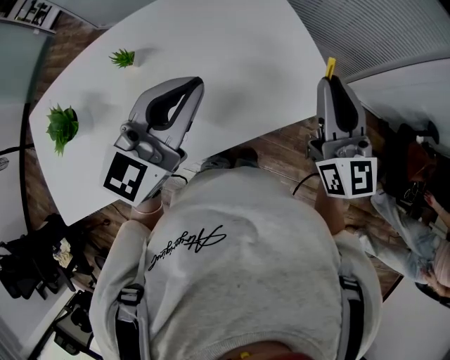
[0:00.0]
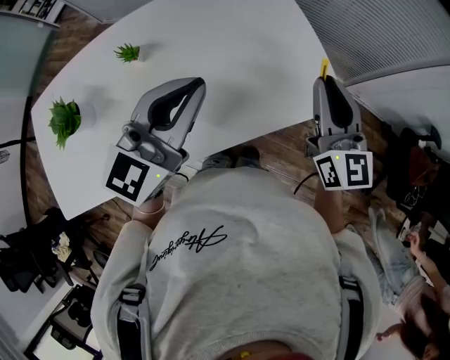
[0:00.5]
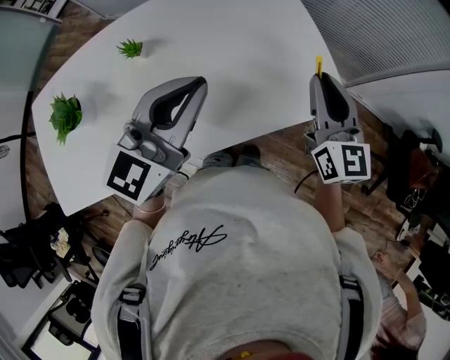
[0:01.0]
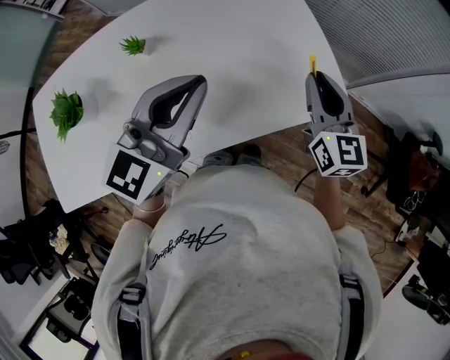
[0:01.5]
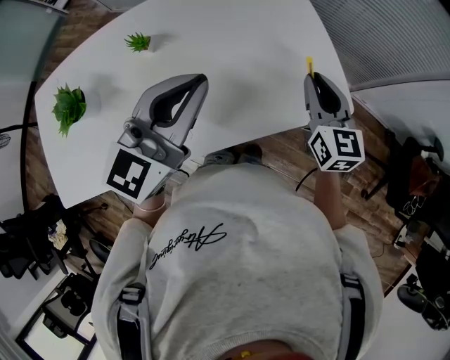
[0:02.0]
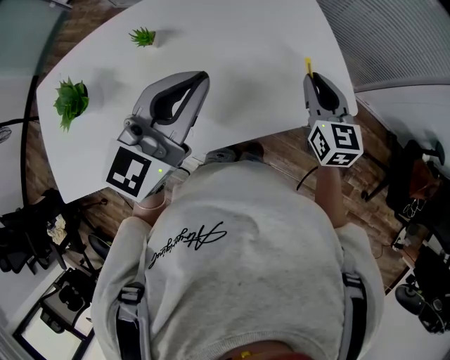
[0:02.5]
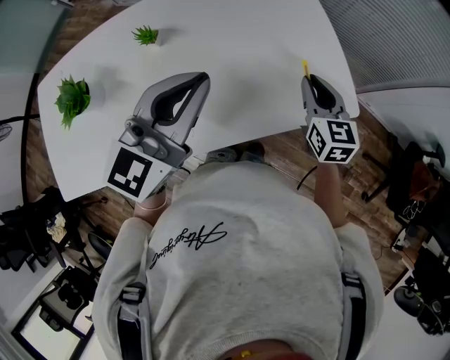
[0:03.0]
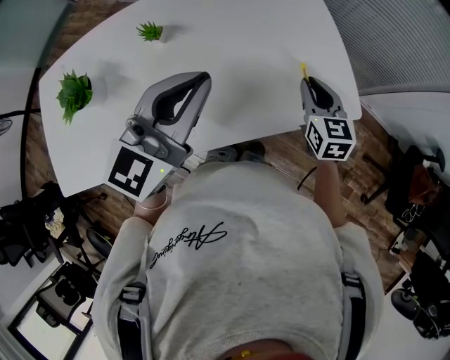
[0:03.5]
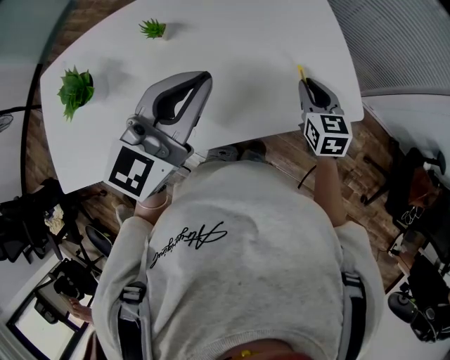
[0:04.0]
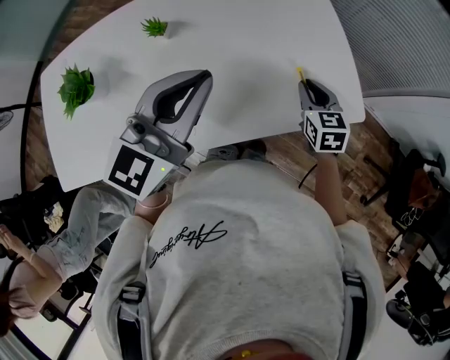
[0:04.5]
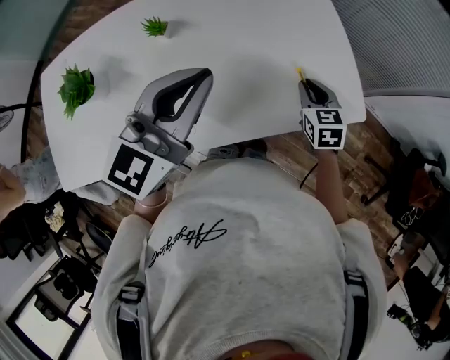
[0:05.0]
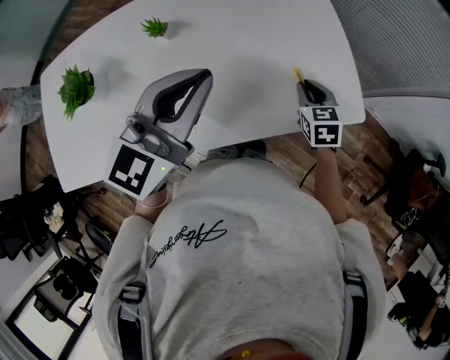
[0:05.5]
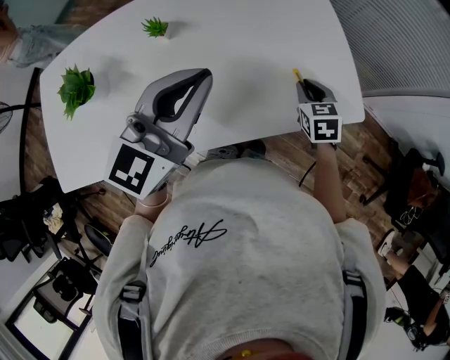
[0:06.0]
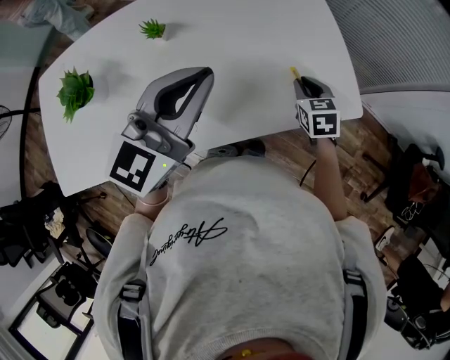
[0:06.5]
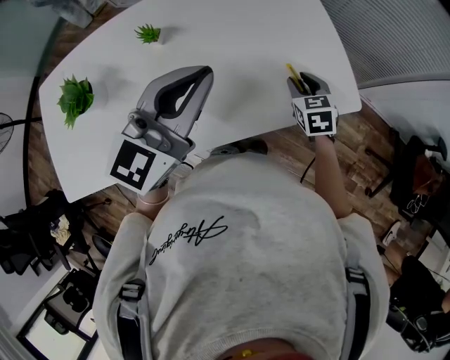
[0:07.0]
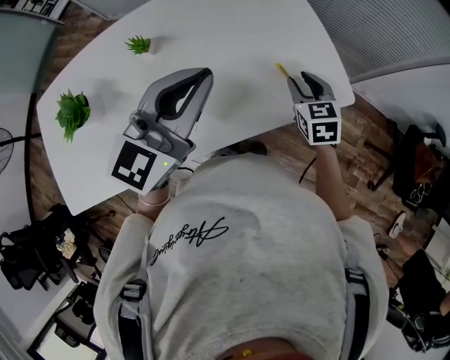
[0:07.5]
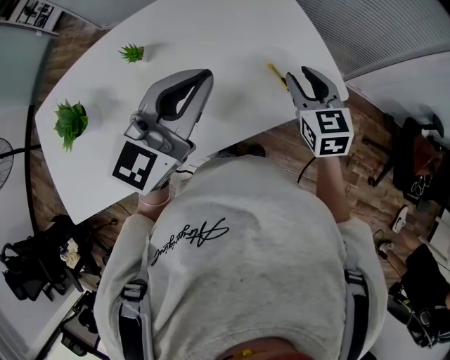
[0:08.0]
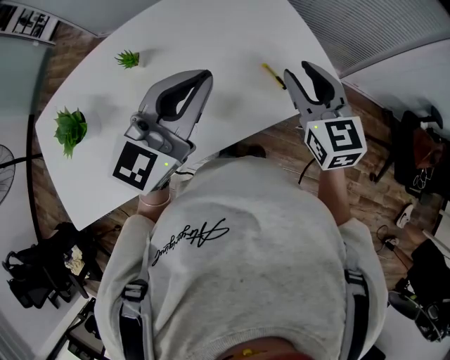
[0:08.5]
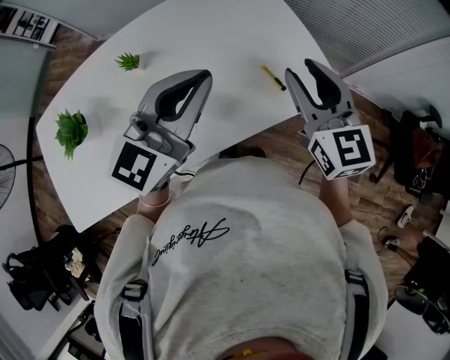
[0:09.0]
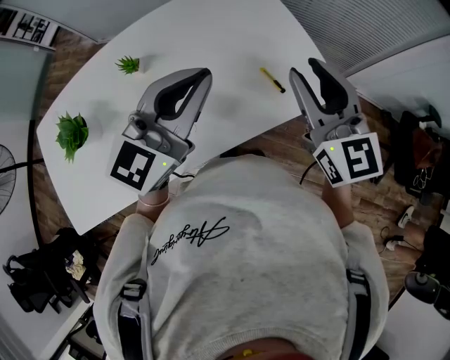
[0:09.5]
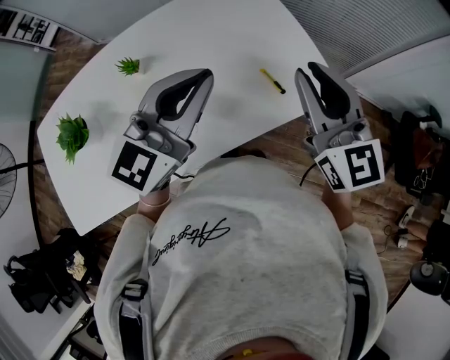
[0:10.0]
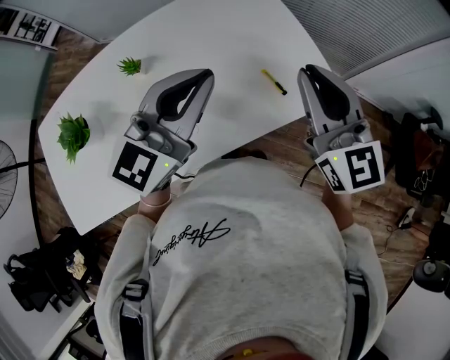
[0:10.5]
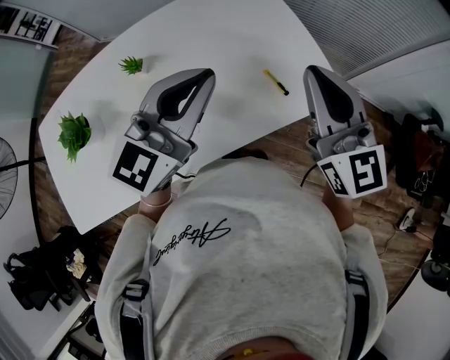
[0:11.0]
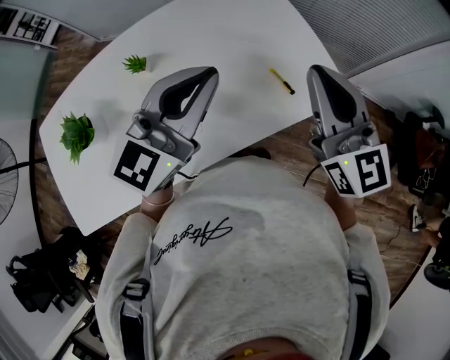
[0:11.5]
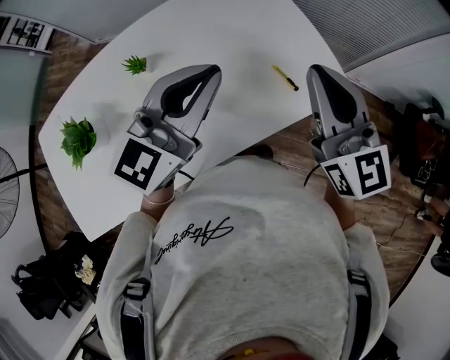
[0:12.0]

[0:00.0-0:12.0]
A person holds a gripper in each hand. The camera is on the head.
0:00.0 to 0:02.0: The right gripper goes roughly 10 cm downward.
0:02.0 to 0:04.0: The right gripper is displaced downward by roughly 10 cm.
0:04.0 to 0:06.0: There are only small adjustments of the grippers.
0:06.0 to 0:08.0: The right gripper goes roughly 10 cm upward, and opens up.
0:08.0 to 0:10.0: The right gripper travels upward by about 15 cm, and turns by roughly 30 degrees.
0:10.0 to 0:12.0: The grippers stay close to where they were, moving slightly.

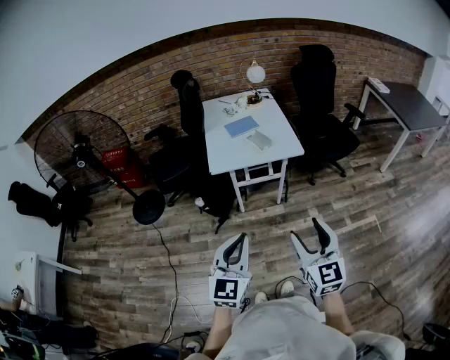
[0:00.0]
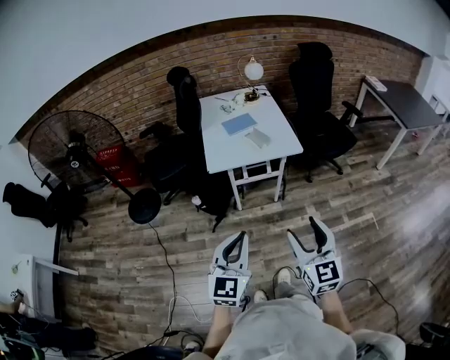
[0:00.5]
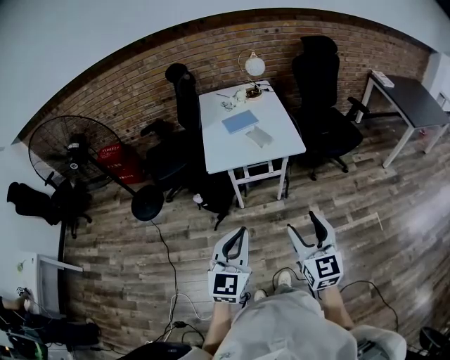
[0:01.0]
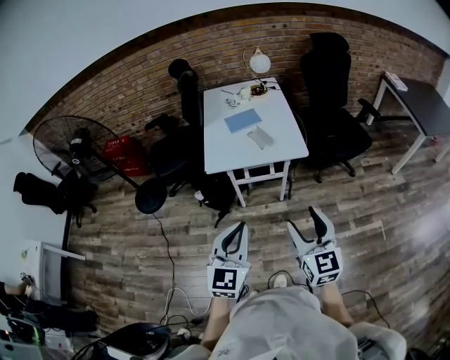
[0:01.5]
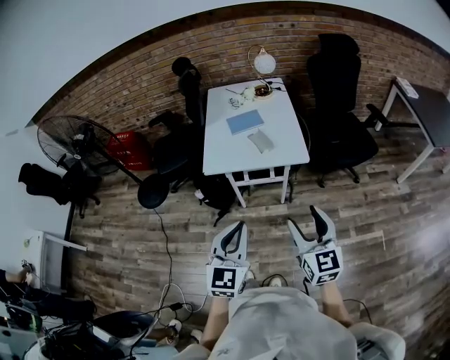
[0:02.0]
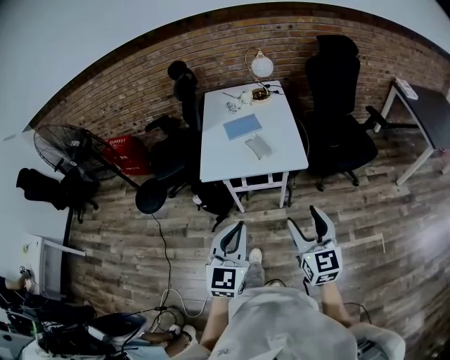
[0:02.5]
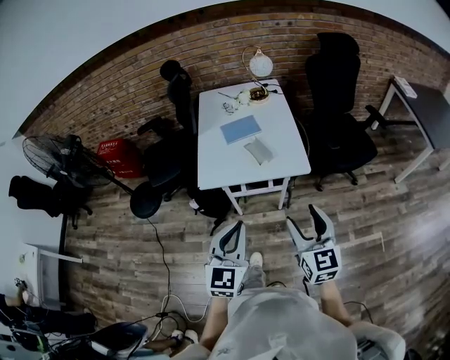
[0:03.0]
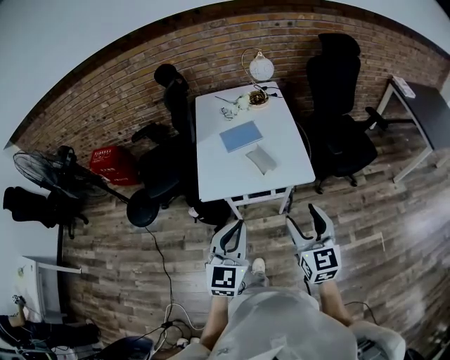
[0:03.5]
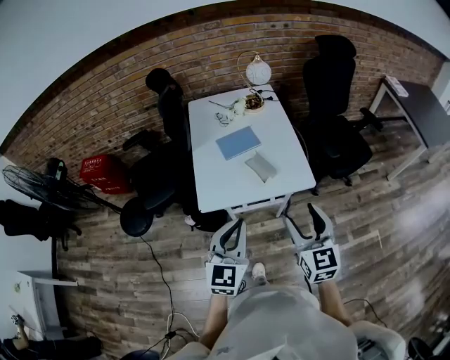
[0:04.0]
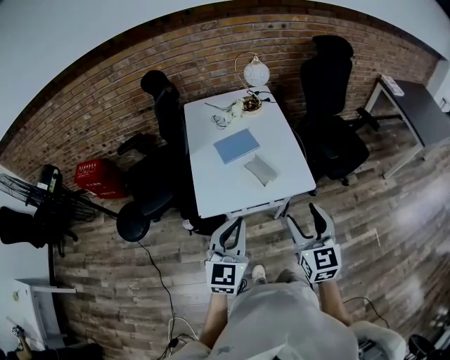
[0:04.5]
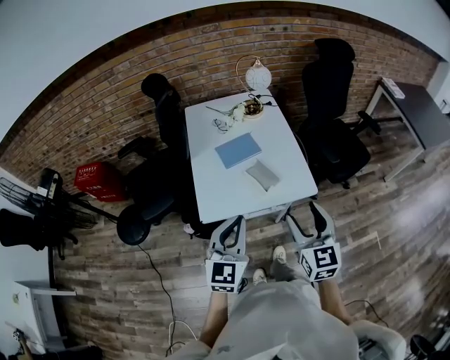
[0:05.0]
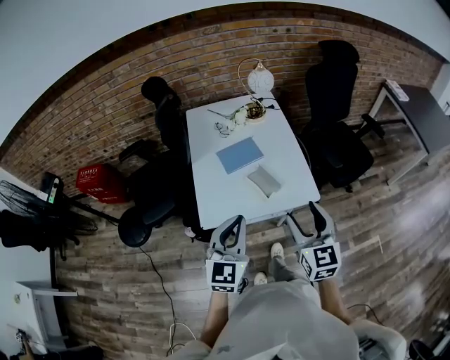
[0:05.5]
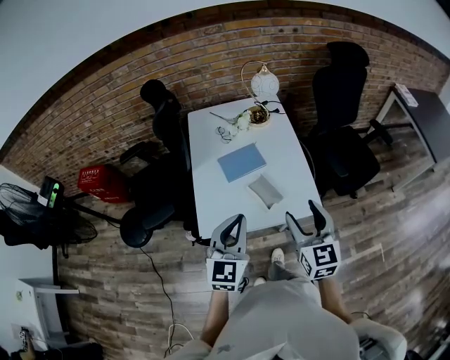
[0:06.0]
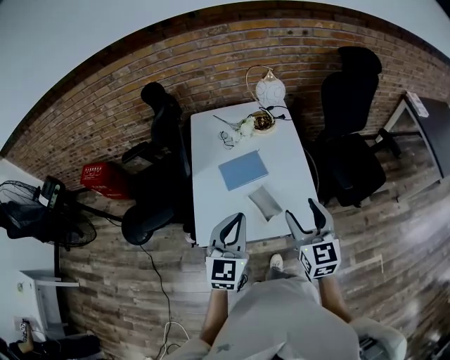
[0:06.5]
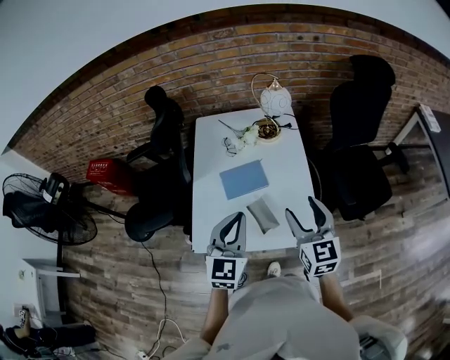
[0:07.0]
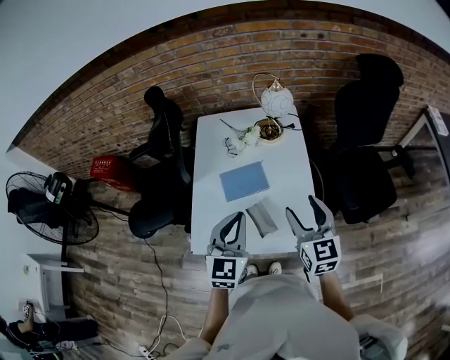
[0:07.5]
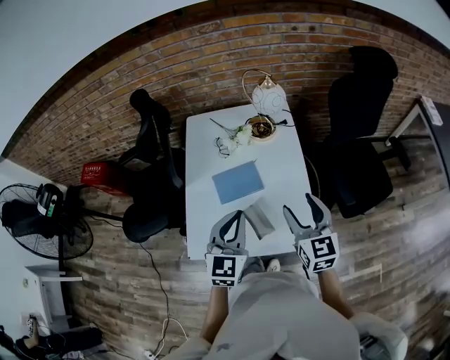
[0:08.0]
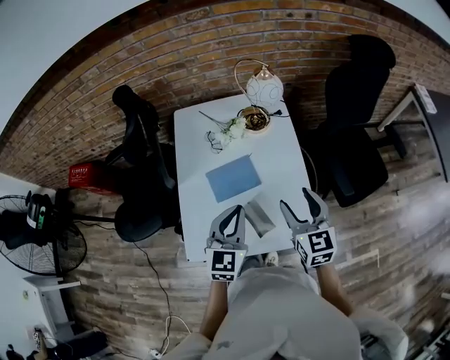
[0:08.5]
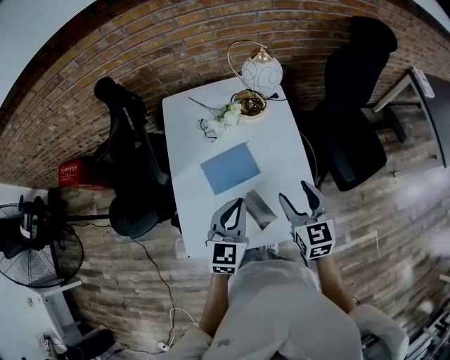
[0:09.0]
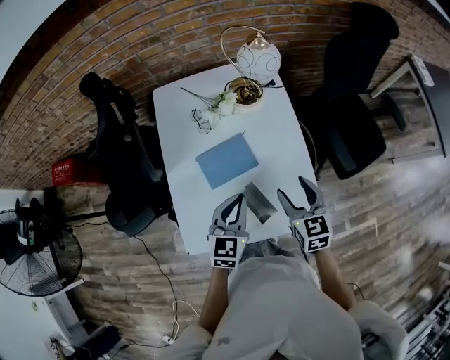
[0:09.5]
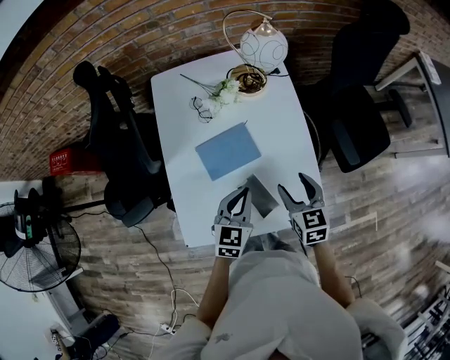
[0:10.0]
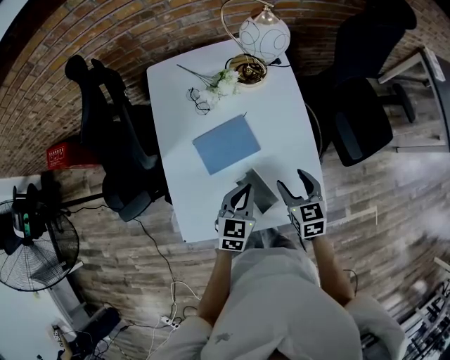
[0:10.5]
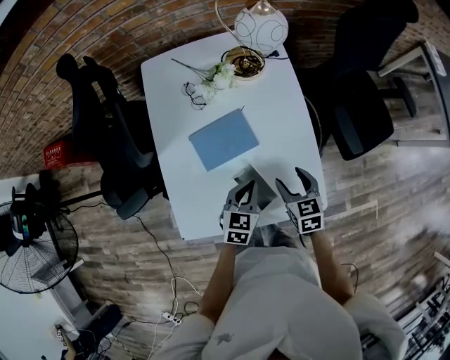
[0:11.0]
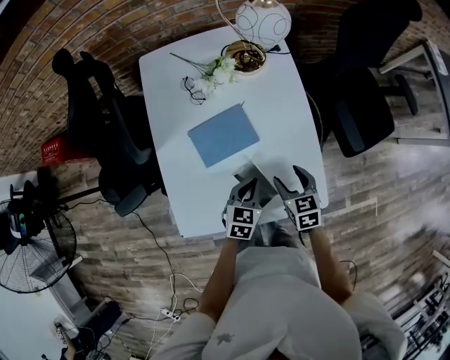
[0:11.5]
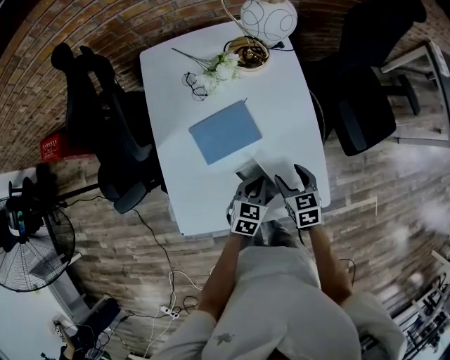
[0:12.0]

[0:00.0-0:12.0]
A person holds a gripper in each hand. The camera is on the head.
0:00.0 to 0:02.0: The two grippers go roughly 20 cm forward and to the right.
0:02.0 to 0:04.0: Both grippers travel together forward, some 20 cm.
0:04.0 to 0:06.0: Both grippers move forward, approximately 15 cm.
0:06.0 to 0:08.0: The right gripper is displaced forward by approximately 20 cm, while the left gripper is displaced forward and to the right by approximately 20 cm.
0:08.0 to 0:10.0: The grippers both shift downward by some 15 cm. The right gripper changes its angle by roughly 20 degrees; the left gripper rotates some 20 degrees.
0:10.0 to 0:12.0: The grippers both shift downward by approximately 10 cm.

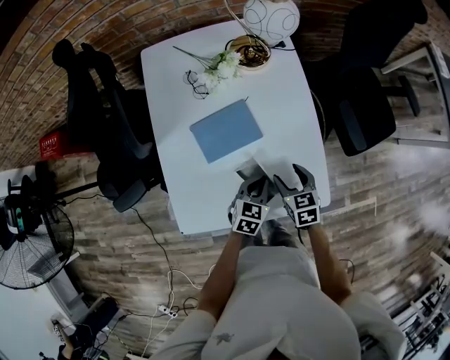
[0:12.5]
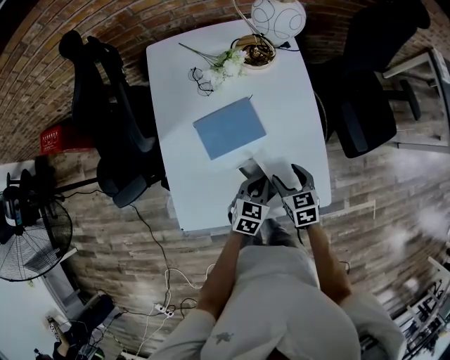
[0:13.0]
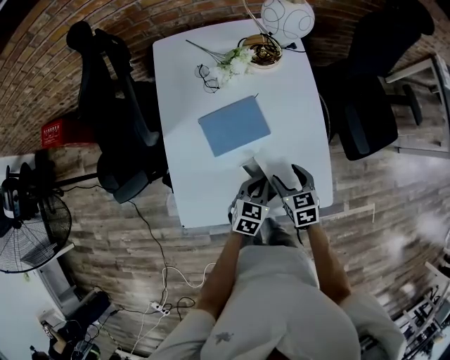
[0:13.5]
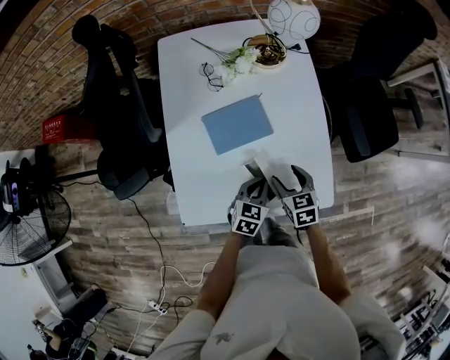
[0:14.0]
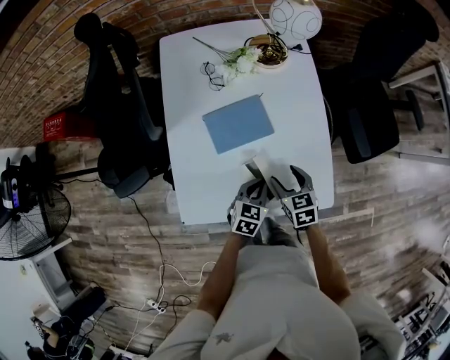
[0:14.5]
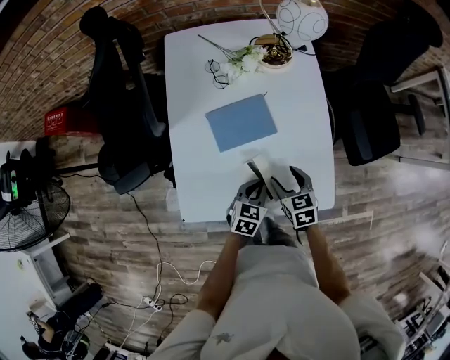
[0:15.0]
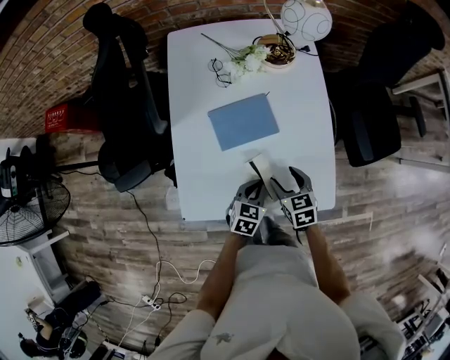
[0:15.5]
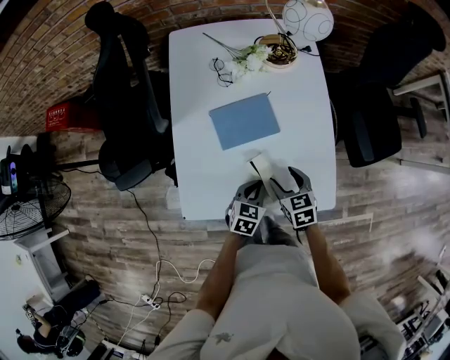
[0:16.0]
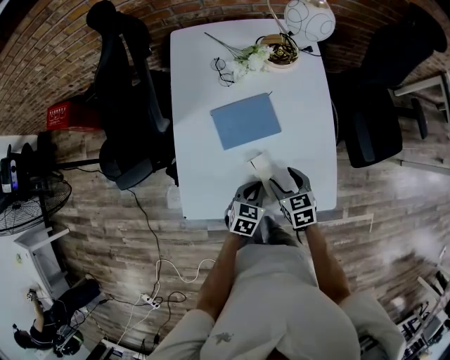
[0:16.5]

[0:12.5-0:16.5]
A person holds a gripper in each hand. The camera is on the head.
0:12.5 to 0:14.5: The grippers stay close to where they were, moving slightly.
0:14.5 to 0:16.5: The grippers stay close to where they were, moving slightly.
